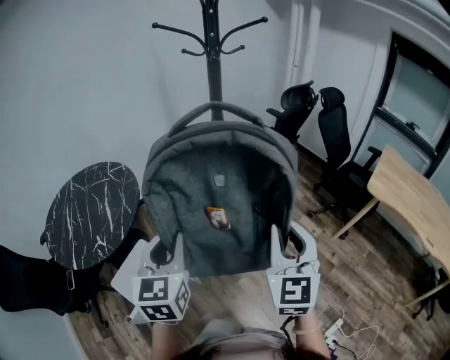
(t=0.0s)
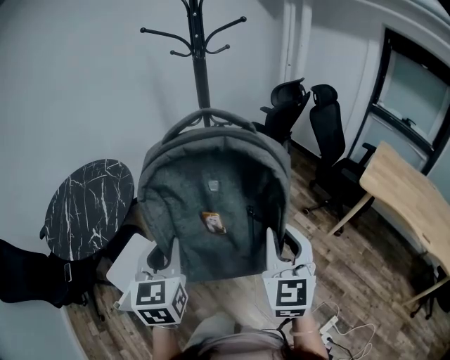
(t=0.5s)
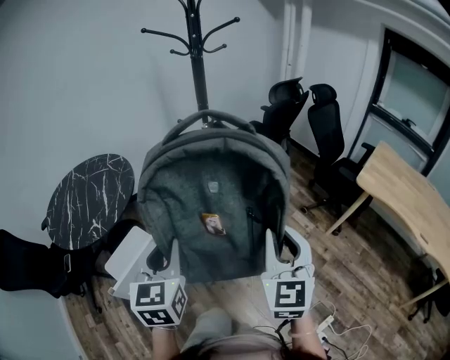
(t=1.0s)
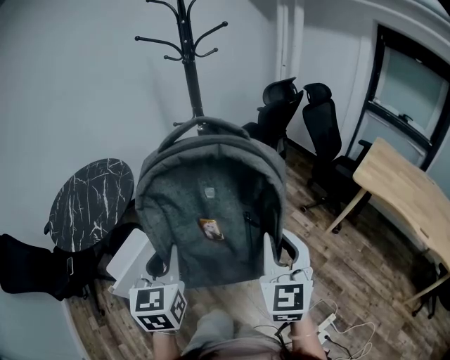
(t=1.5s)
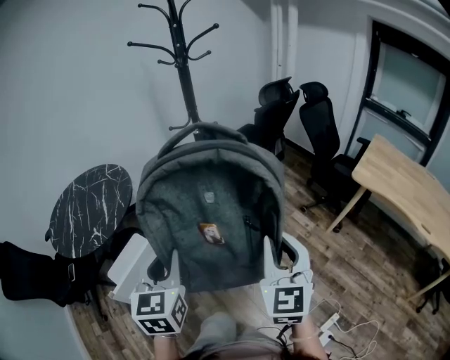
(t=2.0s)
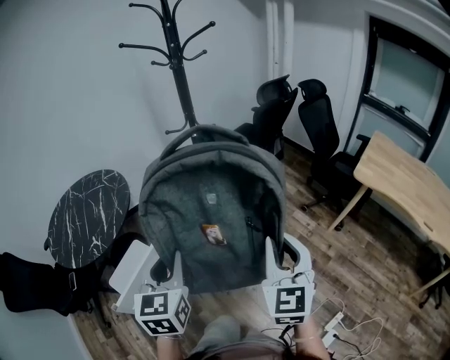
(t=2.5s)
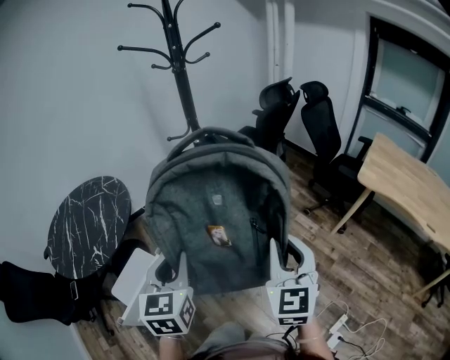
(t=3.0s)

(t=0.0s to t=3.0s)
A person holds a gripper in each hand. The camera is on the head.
t=0.0s - t=1.5s: Both grippers move backward and to the right, about 15 cm.
t=1.5s - t=3.0s: Both grippers move forward, approximately 10 cm.

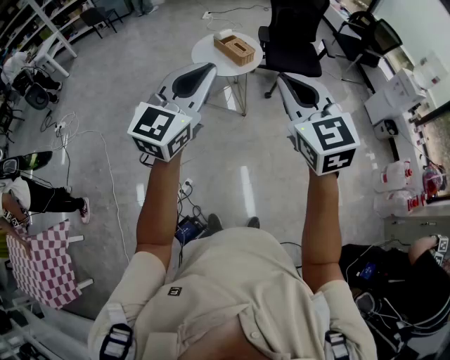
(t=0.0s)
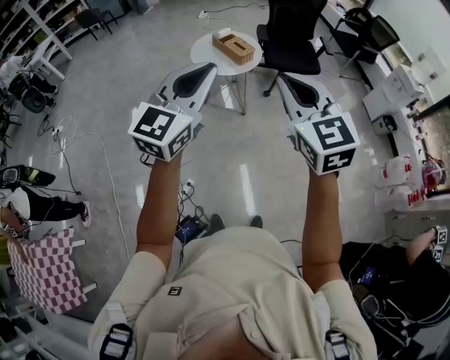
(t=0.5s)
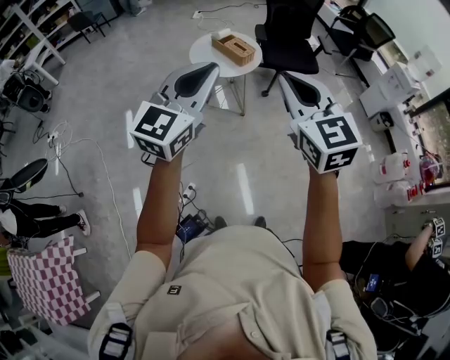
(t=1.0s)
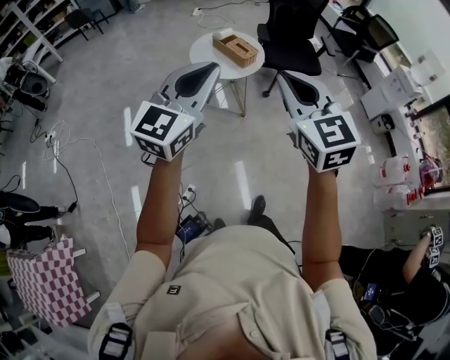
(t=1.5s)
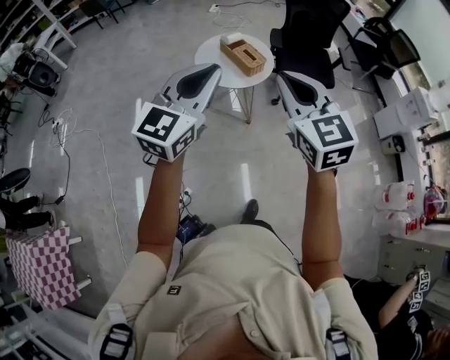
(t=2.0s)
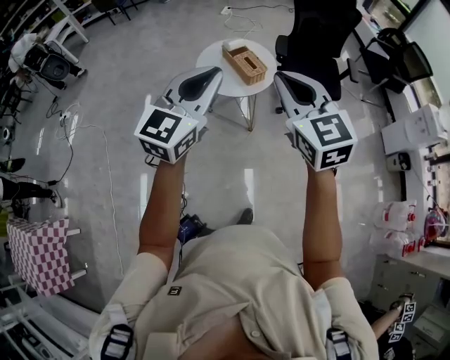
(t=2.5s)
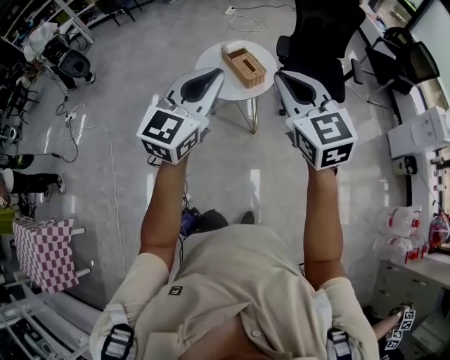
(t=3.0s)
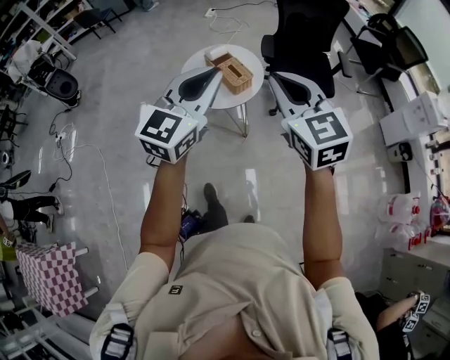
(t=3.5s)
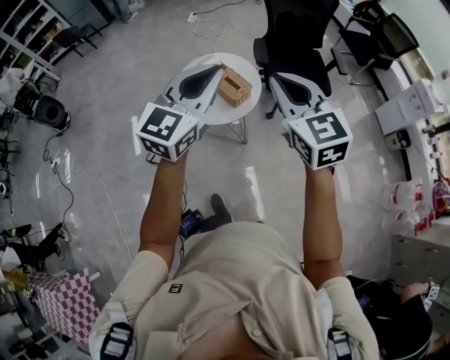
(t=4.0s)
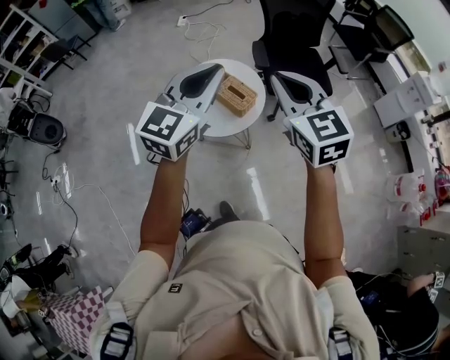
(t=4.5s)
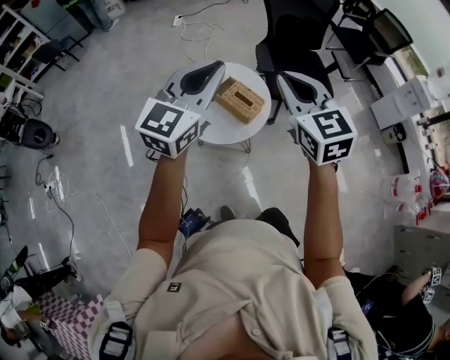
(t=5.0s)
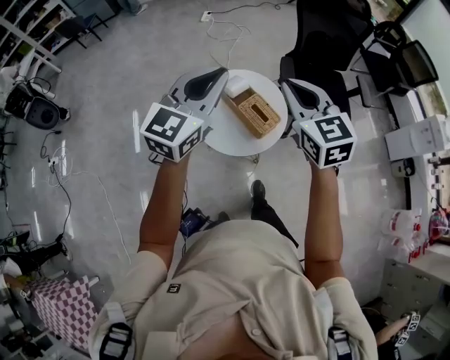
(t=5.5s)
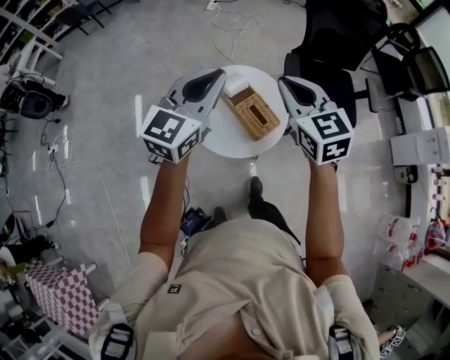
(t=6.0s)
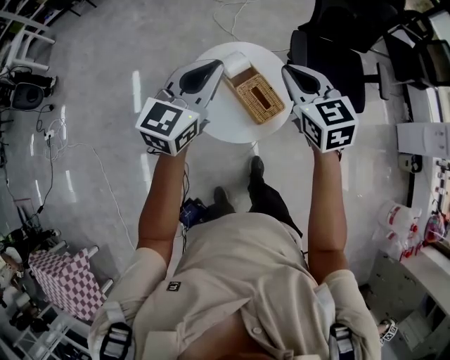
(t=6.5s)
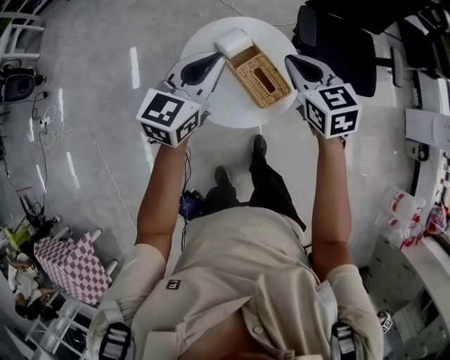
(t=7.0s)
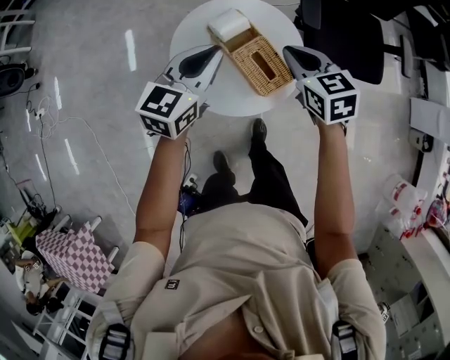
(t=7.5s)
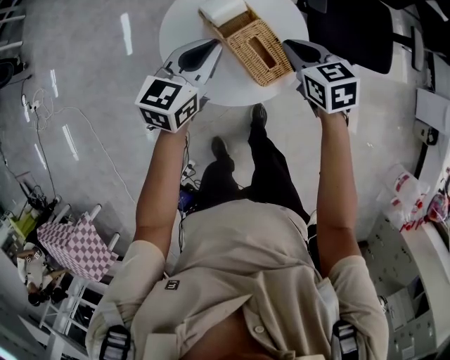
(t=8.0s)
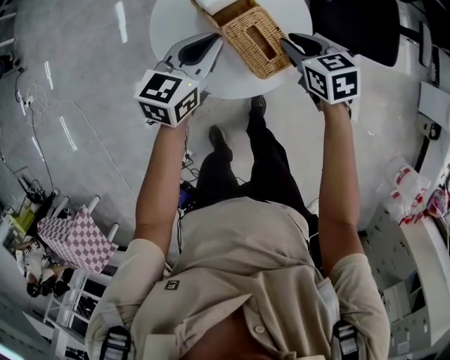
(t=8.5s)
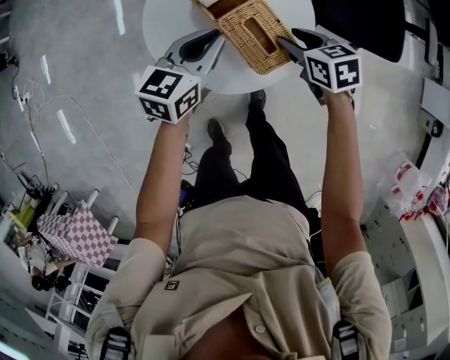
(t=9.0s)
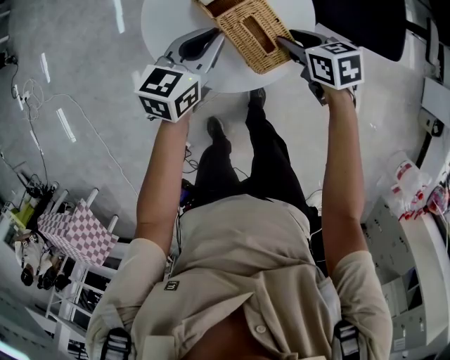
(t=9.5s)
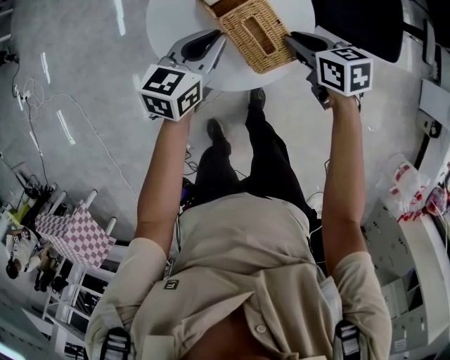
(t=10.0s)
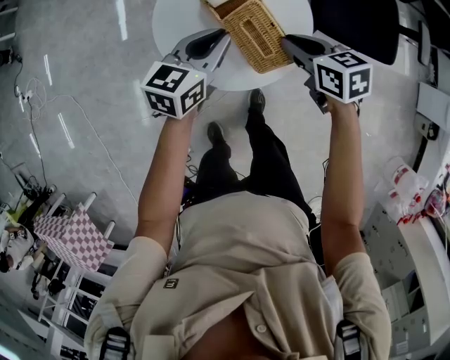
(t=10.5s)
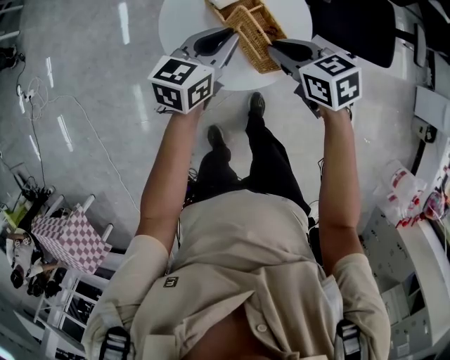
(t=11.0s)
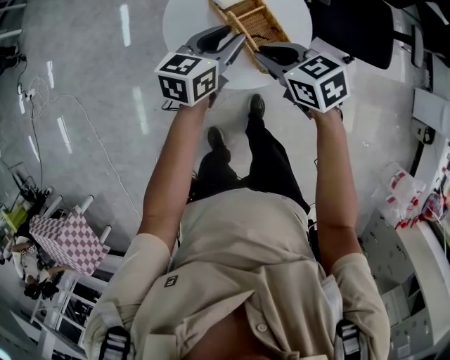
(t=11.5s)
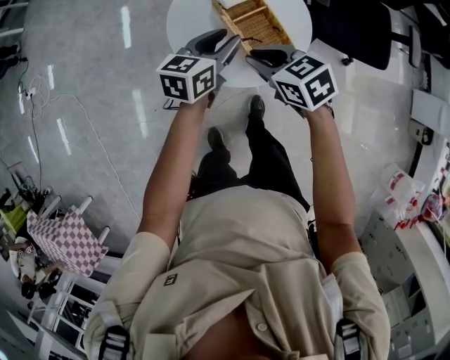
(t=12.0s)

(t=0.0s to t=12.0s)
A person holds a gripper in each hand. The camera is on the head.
t=0.0s - t=2.0s: The two grippers go approximately 20 cm forward.
t=2.0s - t=4.0s: The two grippers go some 25 cm forward.
t=4.0s - t=6.0s: Both grippers travel together forward and to the left, approximately 30 cm.
t=6.0s - t=8.0s: Both grippers travel together downward, roughly 35 cm. The left gripper changes its angle by roughly 30 degrees. Meanwhile the right gripper turns by approximately 30 degrees.
t=8.0s - t=10.0s: Both grippers move downward, about 10 cm. The right gripper opens and closes again.
t=10.0s - t=12.0s: The left gripper opens up. Meanwhile the right gripper travels to the left, upward and backward by about 15 cm, and rotates approximately 20 degrees.

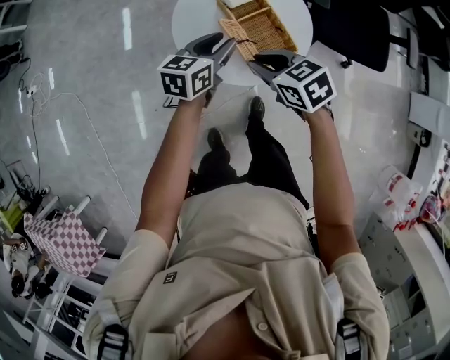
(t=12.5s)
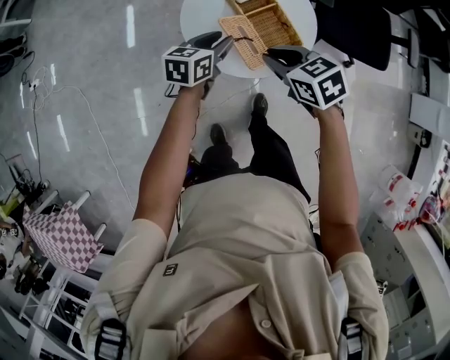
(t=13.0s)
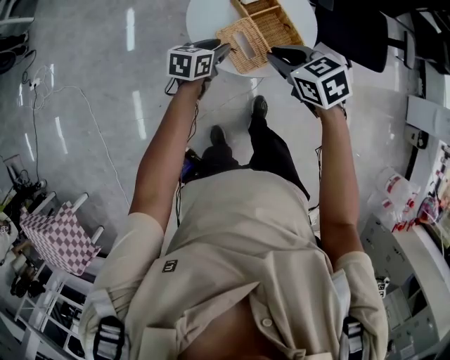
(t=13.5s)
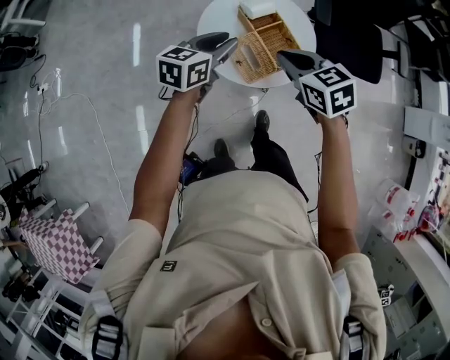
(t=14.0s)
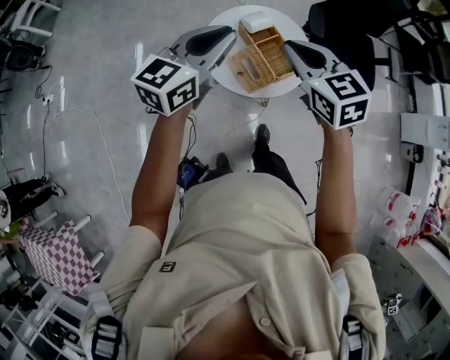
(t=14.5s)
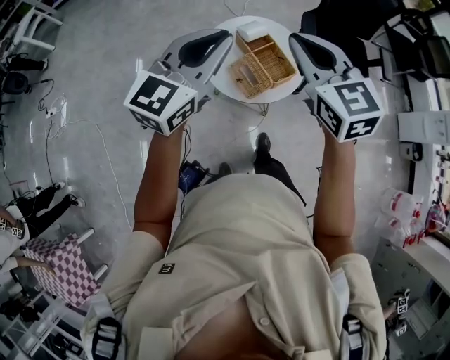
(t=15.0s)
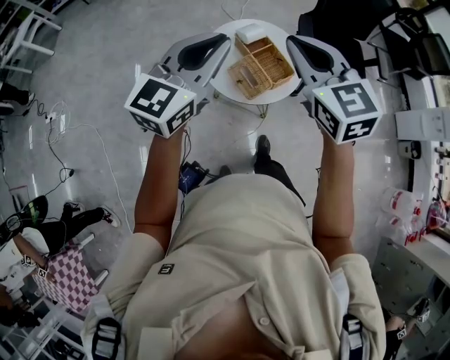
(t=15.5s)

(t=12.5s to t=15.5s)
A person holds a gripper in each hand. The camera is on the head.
t=12.5s - t=14.0s: The right gripper travels upward by about 10 cm. The left gripper shifts approximately 15 cm upward and to the left.
t=14.0s - t=15.5s: The right gripper is displaced upward by approximately 25 cm, and swivels some 30 degrees. Meanwhile the left gripper is displaced upward and backward by about 30 cm, and changes its angle by roughly 30 degrees.

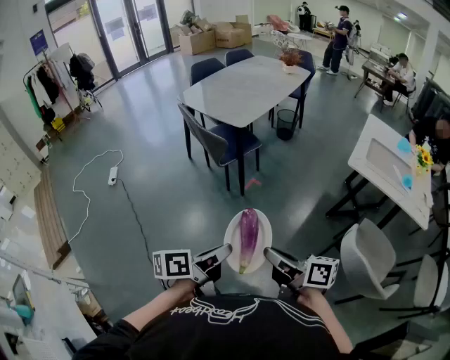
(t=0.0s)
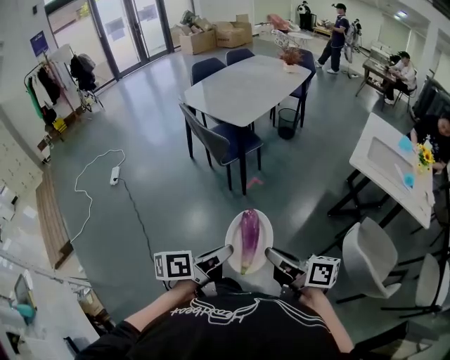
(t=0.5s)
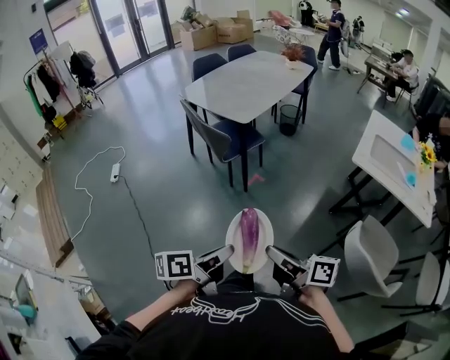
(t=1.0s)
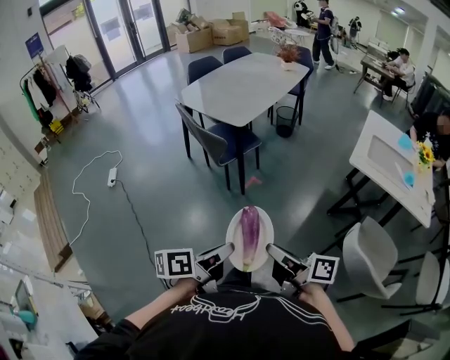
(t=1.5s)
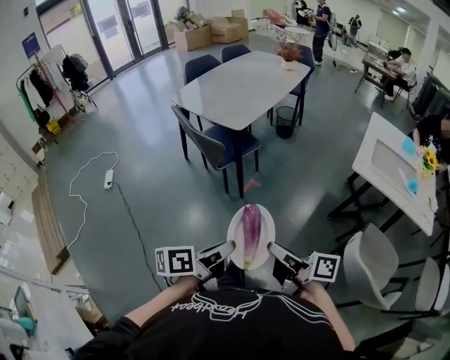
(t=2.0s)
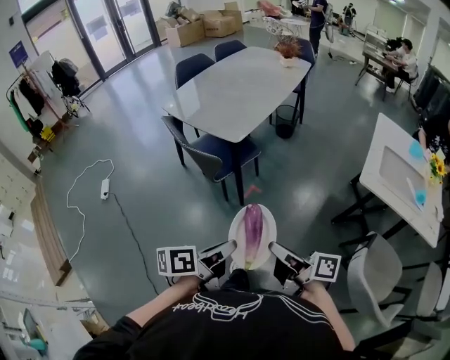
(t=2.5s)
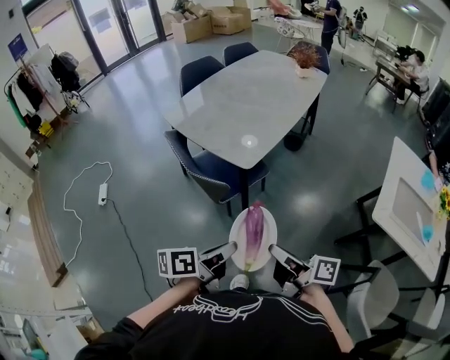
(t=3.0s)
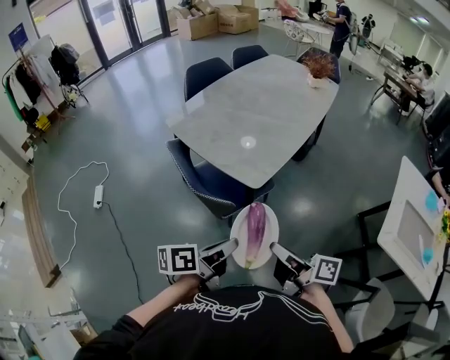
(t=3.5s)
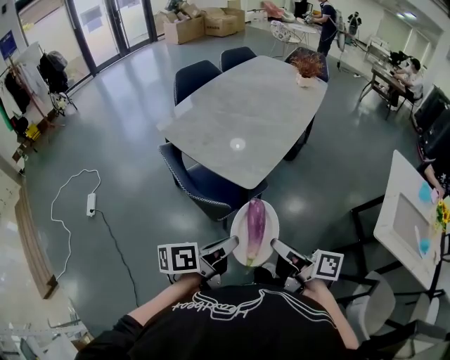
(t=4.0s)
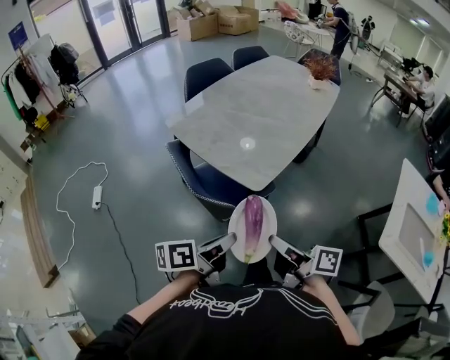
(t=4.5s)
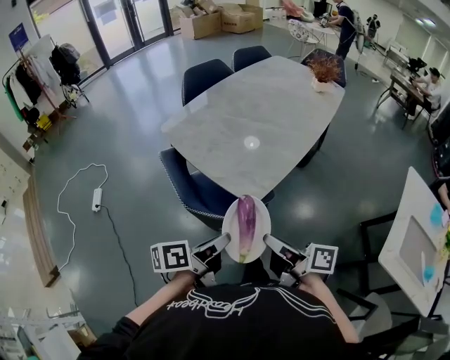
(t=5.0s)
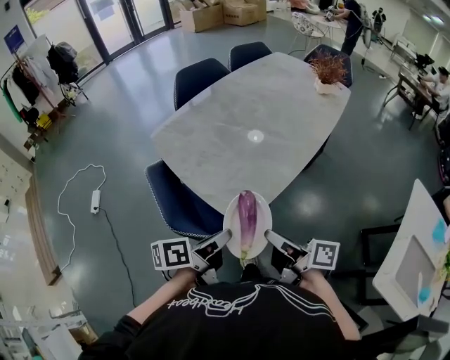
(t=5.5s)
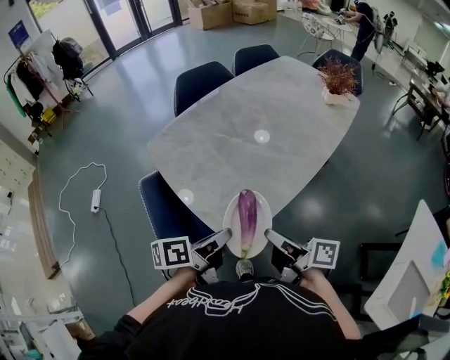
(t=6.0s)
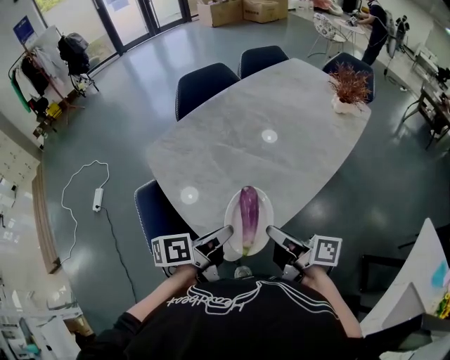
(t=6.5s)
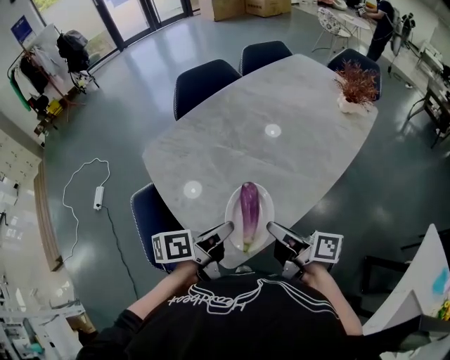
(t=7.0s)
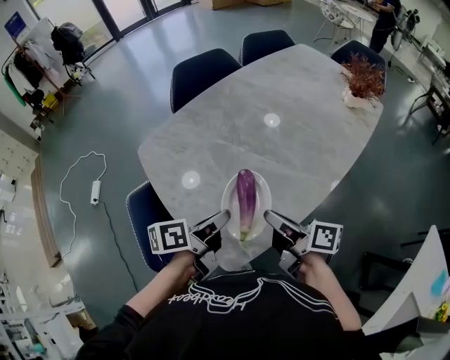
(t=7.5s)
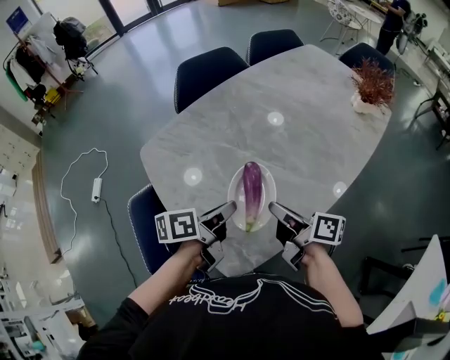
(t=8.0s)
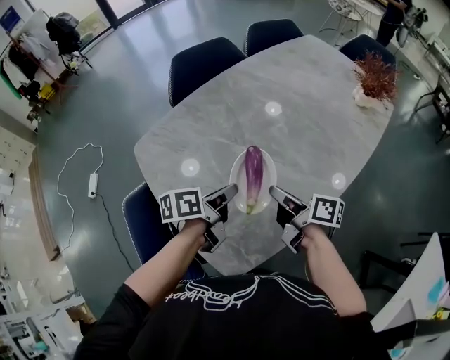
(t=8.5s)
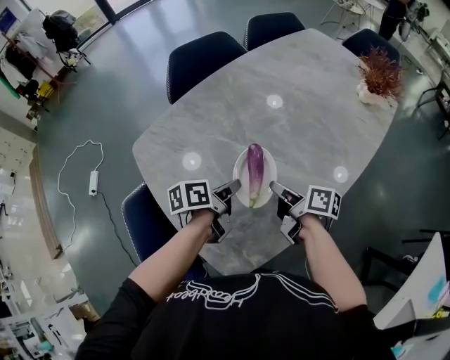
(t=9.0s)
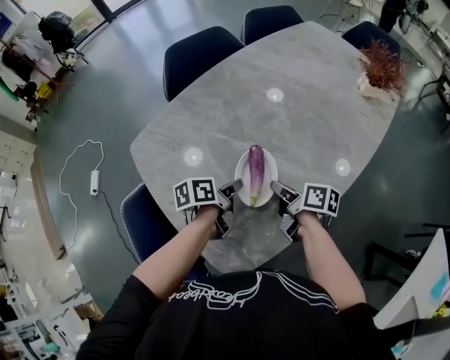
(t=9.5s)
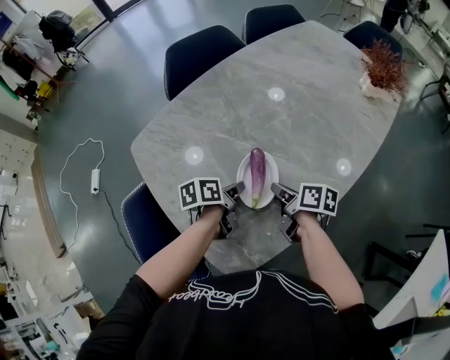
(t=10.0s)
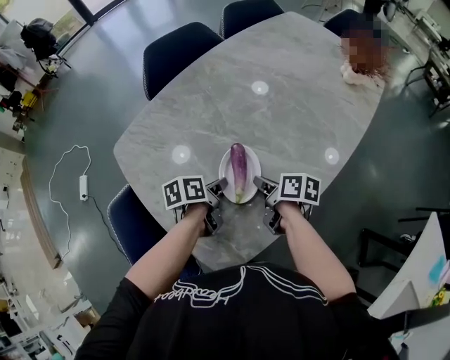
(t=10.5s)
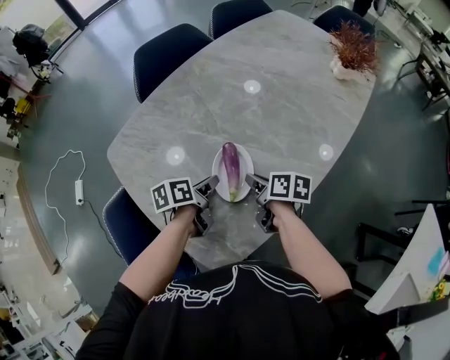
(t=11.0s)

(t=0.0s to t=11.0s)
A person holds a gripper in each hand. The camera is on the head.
t=0.0s - t=2.0s: Both grippers travel together forward, roughly 10 cm.
t=2.0s - t=3.5s: The pair of grippers is taken forward, about 40 cm.
t=3.5s - t=5.5s: Both grippers move forward, about 20 cm.
t=5.5s - t=7.5s: Both grippers move forward, approximately 25 cm.
t=7.5s - t=9.0s: Both grippers move forward and downward, roughly 15 cm.
t=9.0s - t=11.0s: The right gripper ends up about 5 cm from where it was.
